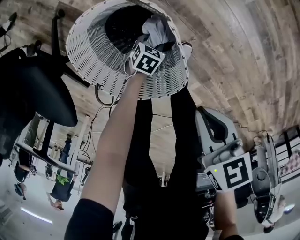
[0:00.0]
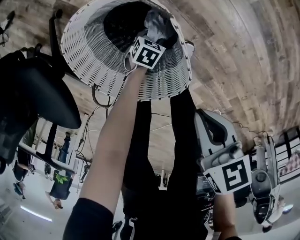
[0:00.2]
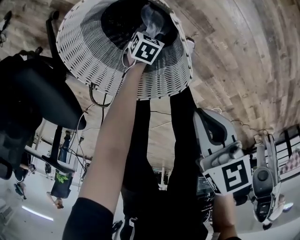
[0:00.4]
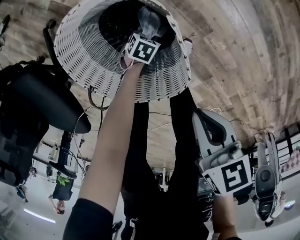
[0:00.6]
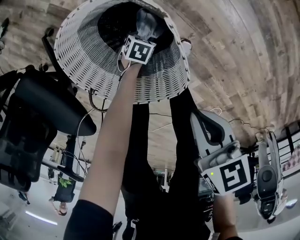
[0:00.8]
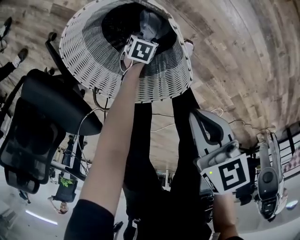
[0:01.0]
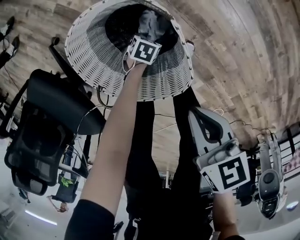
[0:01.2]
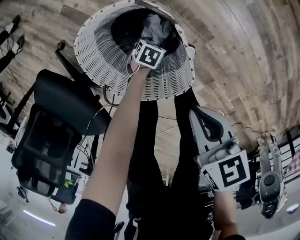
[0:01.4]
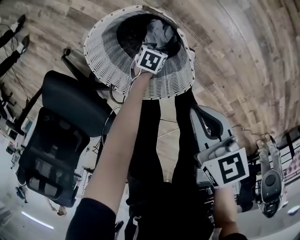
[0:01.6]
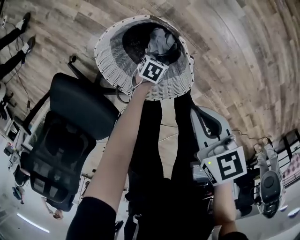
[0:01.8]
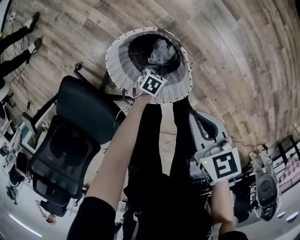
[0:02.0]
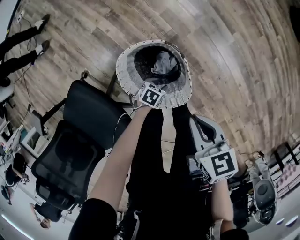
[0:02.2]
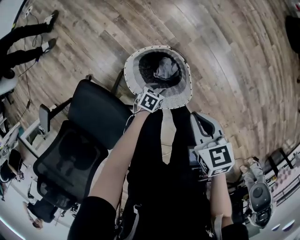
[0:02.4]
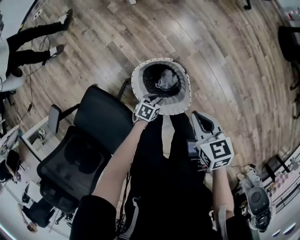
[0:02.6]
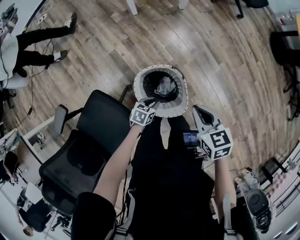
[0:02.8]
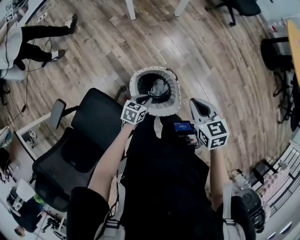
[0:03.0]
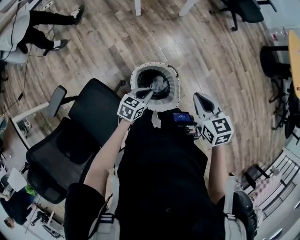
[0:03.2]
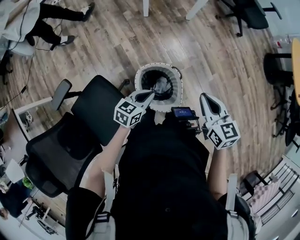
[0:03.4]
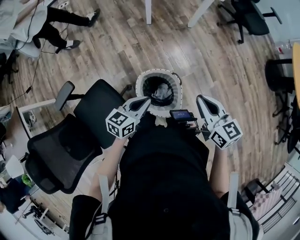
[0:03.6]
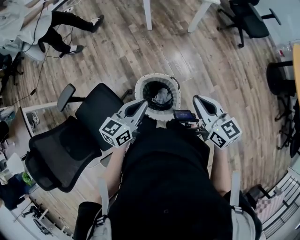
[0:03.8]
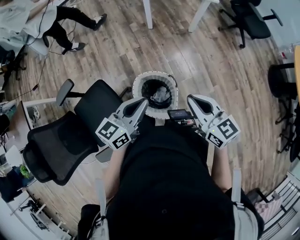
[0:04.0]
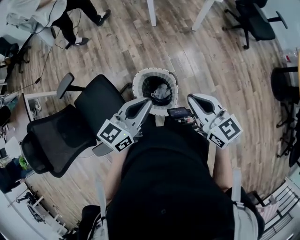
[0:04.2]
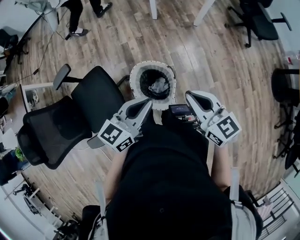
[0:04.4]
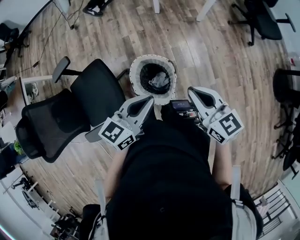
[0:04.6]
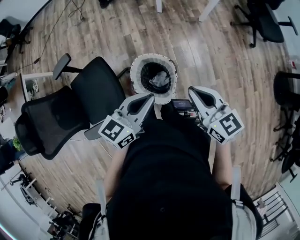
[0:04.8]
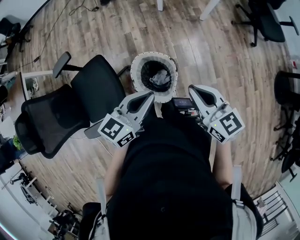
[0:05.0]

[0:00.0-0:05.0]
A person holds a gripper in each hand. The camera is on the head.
0:00.0 to 0:01.6: The right gripper moves some 5 cm. Meanwhile the left gripper moves some 5 cm downward and comes back.
0:01.6 to 0:03.4: The right gripper travels upward by roughly 40 cm, and rotates roughly 30 degrees, while the left gripper heads upward, covering about 60 cm, points its fingers some 40 degrees further upward, and closes up.
0:03.4 to 0:05.0: The left gripper heads upward, covering roughly 20 cm, and changes its angle by approximately 30 degrees, while the right gripper moves roughly 10 cm, and rotates about 30 degrees.

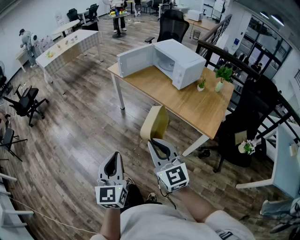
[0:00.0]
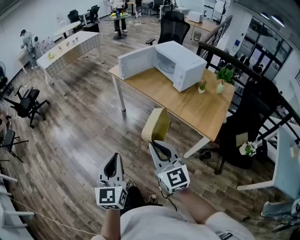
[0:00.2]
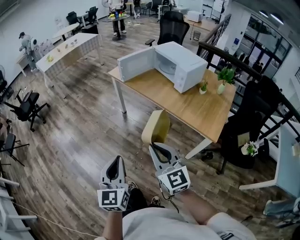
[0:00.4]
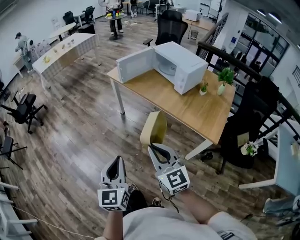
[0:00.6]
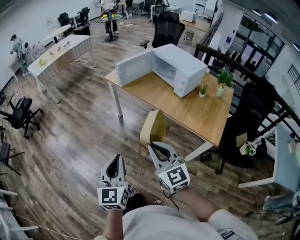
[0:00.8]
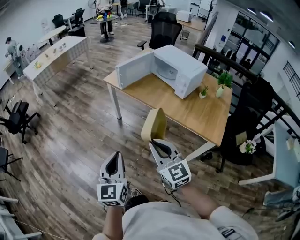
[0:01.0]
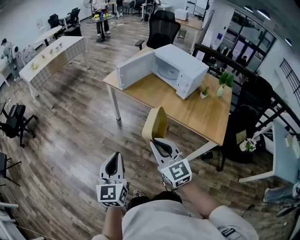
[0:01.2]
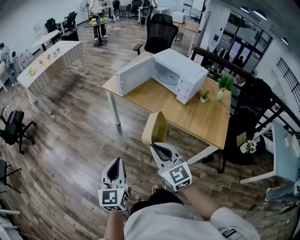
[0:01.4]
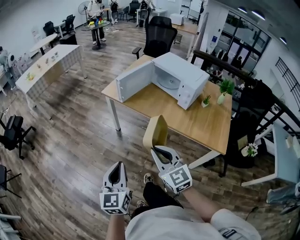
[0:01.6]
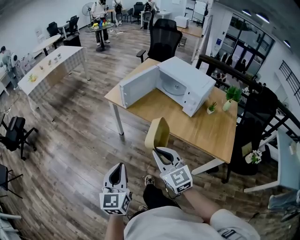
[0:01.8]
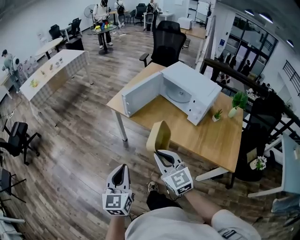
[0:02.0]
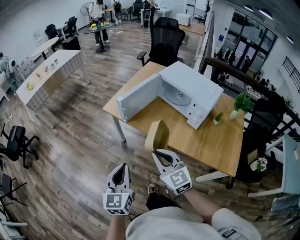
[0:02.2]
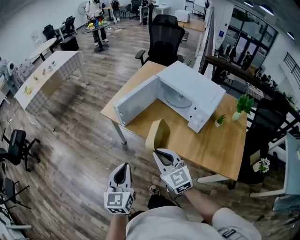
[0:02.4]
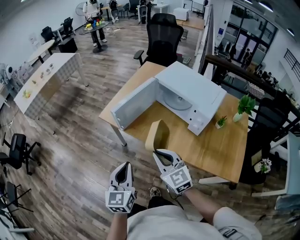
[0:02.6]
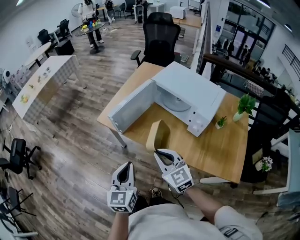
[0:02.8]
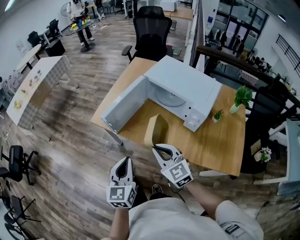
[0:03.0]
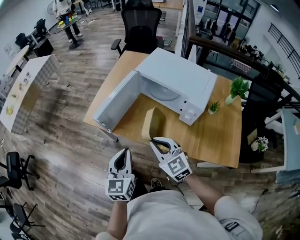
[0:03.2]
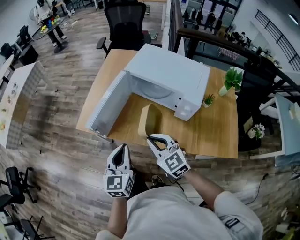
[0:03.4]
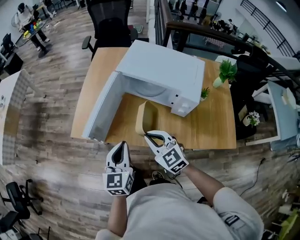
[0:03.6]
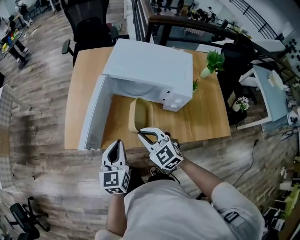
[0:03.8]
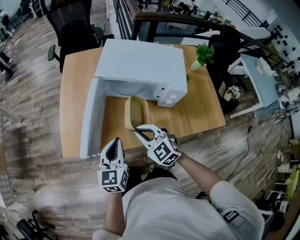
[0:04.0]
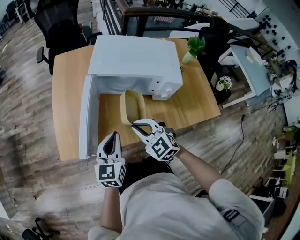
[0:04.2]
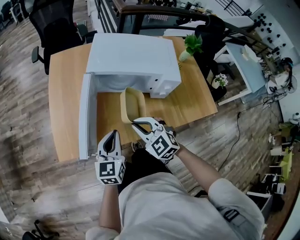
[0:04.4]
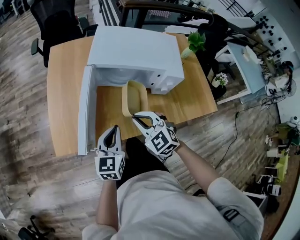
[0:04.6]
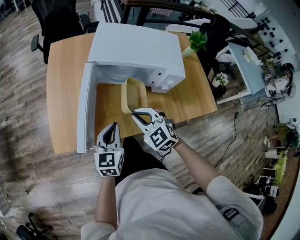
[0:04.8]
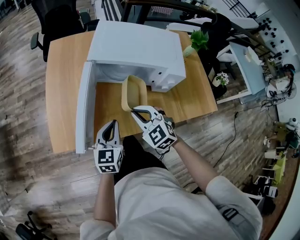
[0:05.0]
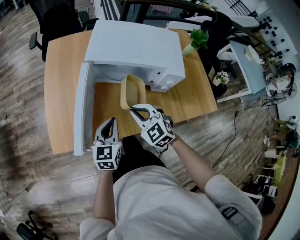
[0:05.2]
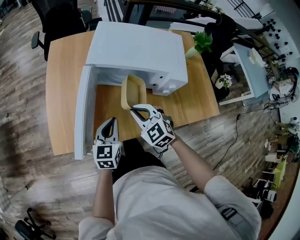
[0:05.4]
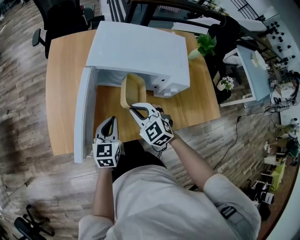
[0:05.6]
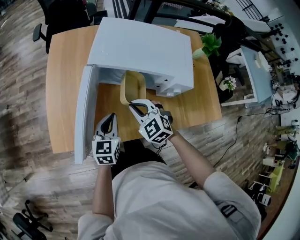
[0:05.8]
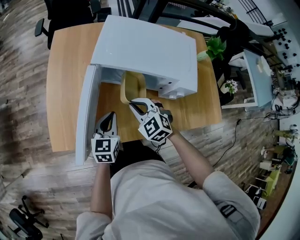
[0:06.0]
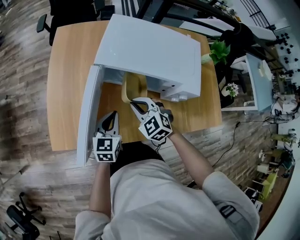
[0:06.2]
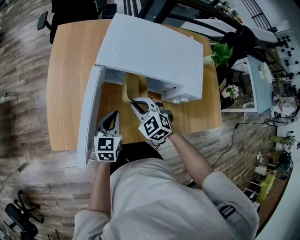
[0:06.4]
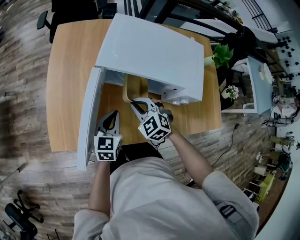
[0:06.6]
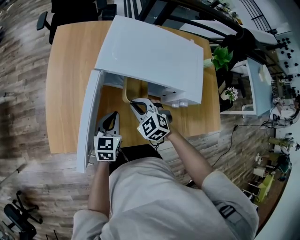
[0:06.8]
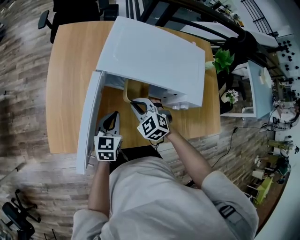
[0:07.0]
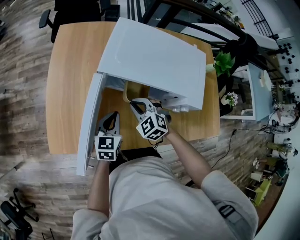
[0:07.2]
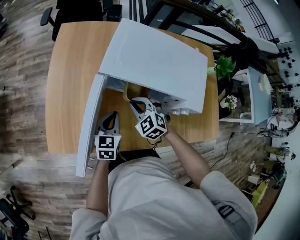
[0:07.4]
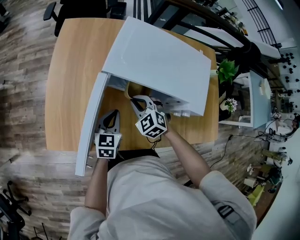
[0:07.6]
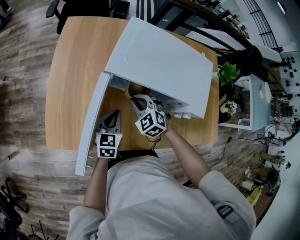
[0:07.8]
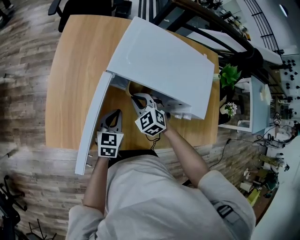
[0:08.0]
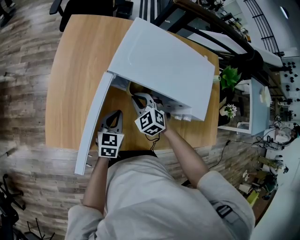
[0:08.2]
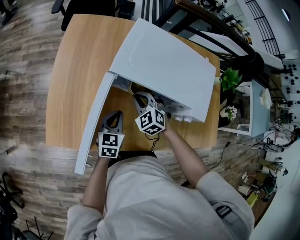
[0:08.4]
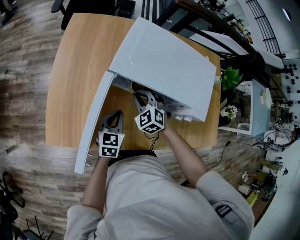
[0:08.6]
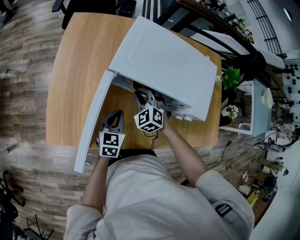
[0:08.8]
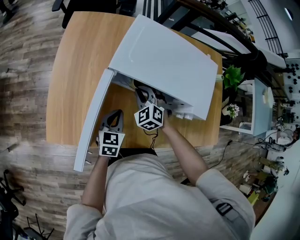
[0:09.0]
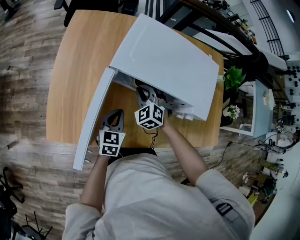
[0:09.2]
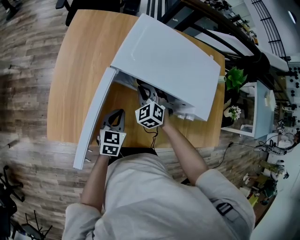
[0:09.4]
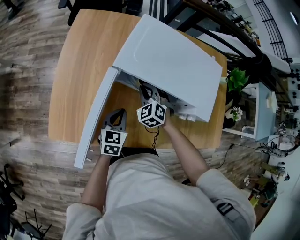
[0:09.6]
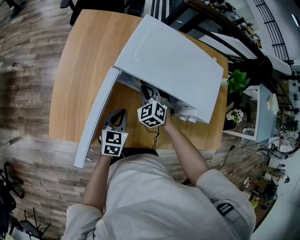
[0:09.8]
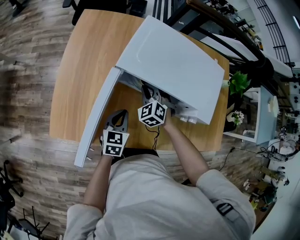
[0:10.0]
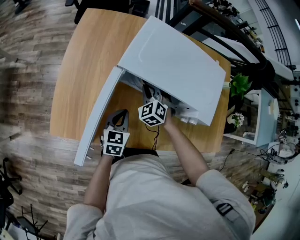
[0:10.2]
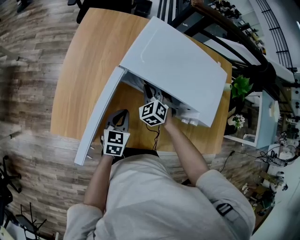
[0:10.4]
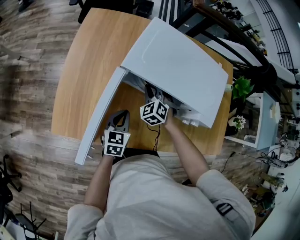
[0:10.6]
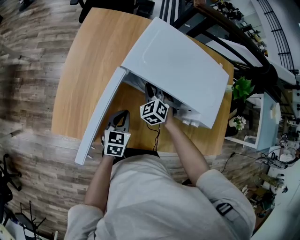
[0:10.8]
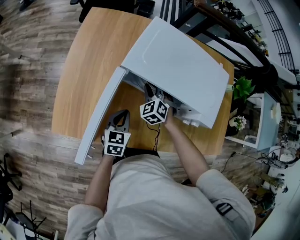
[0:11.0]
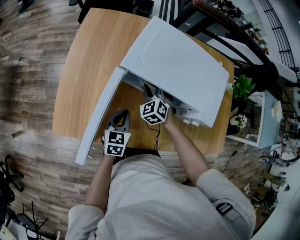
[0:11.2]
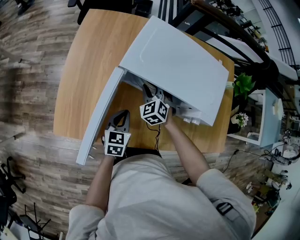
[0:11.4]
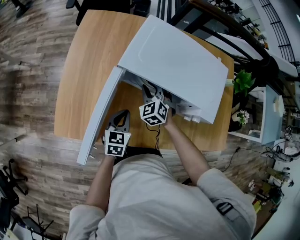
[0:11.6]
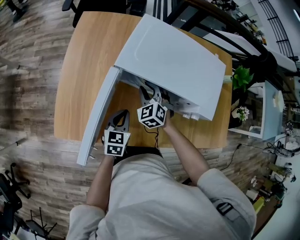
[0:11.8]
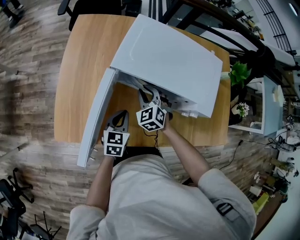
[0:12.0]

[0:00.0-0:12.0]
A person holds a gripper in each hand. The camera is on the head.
0:00.0 to 0:01.6: The two grippers go about 20 cm forward.
0:01.6 to 0:03.0: Both grippers move forward, about 30 cm.
0:03.0 to 0:04.4: The left gripper shifts by about 20 cm, and rotates about 40 degrees; the right gripper shifts by approximately 15 cm, and rotates about 30 degrees.
0:04.4 to 0:06.0: Both grippers travel together forward and downward, roughly 10 cm.
0:06.0 to 0:07.6: The right gripper heads forward and downward, covering some 10 cm. Meanwhile the left gripper shifts roughly 5 cm forward.
0:07.6 to 0:09.0: The grippers move only a little.
0:09.0 to 0:12.0: The grippers move only a little.

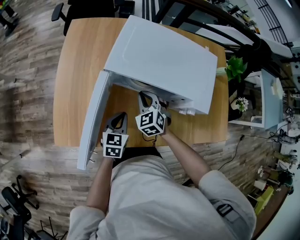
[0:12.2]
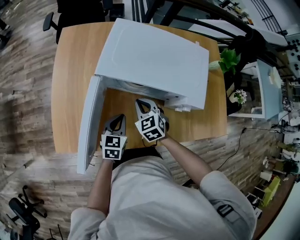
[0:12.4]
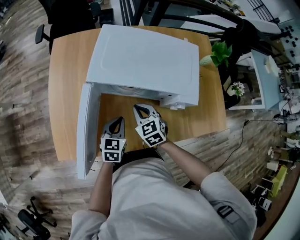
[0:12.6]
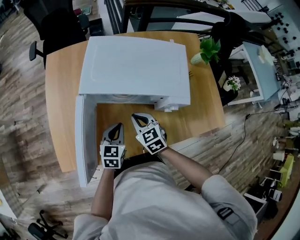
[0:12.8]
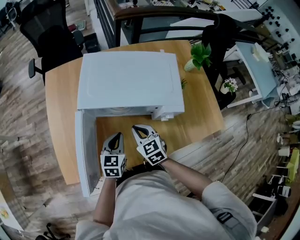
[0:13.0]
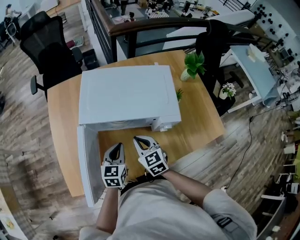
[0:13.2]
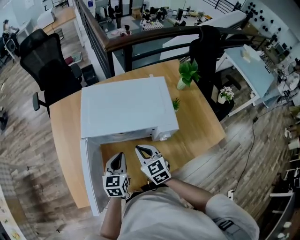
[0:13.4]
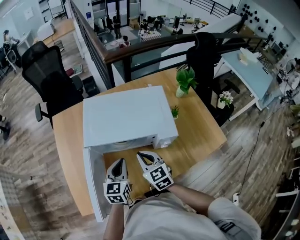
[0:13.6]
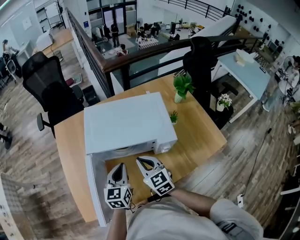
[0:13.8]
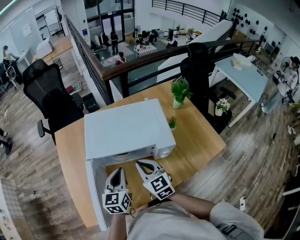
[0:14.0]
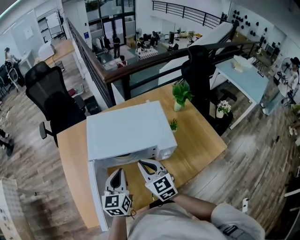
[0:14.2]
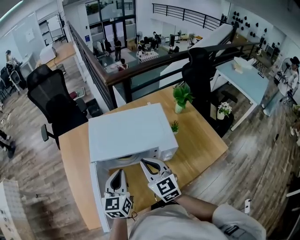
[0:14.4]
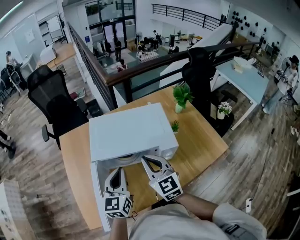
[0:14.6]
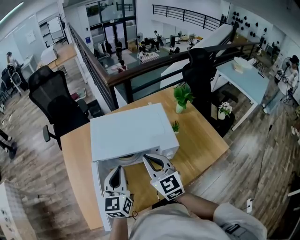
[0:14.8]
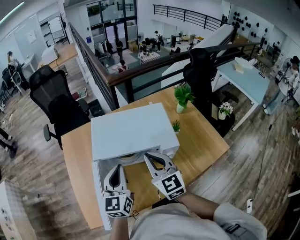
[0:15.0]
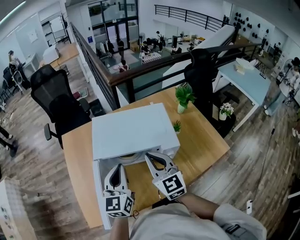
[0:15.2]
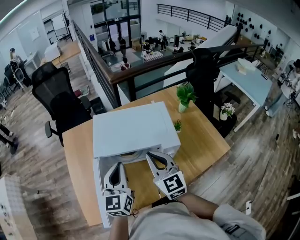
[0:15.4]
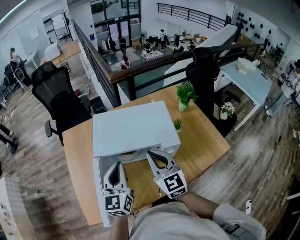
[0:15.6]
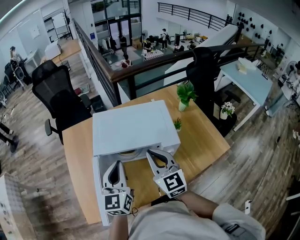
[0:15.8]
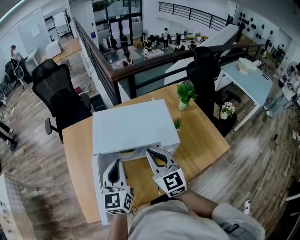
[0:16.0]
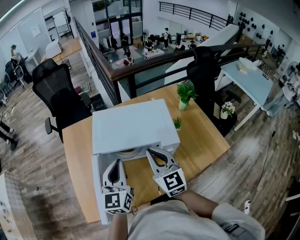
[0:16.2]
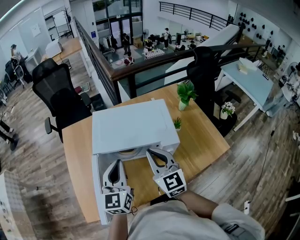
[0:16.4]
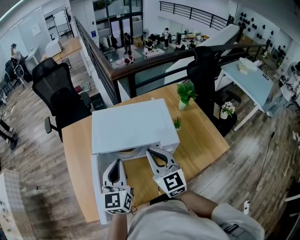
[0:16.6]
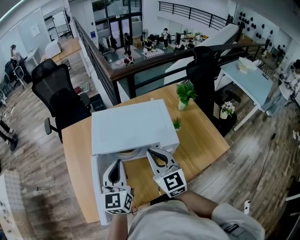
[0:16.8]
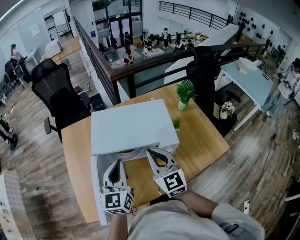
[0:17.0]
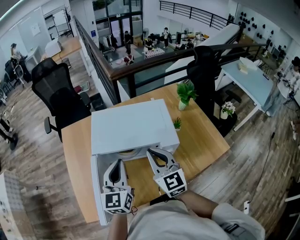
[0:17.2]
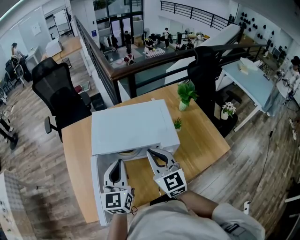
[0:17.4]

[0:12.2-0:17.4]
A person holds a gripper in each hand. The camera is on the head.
0:12.2 to 0:14.0: The right gripper goes roughly 15 cm upward and to the right, and swivels roughly 40 degrees. The left gripper is displaced upward by roughly 15 cm.
0:14.0 to 0:15.6: The grippers both shift upward by about 10 cm.
0:15.6 to 0:17.4: The grippers stay close to where they were, moving slightly.

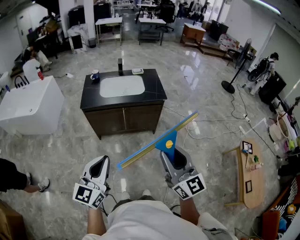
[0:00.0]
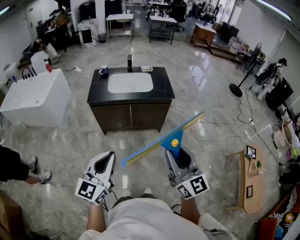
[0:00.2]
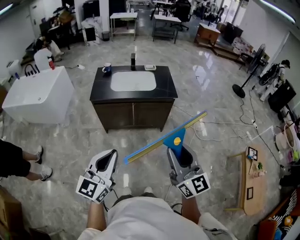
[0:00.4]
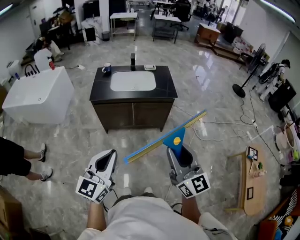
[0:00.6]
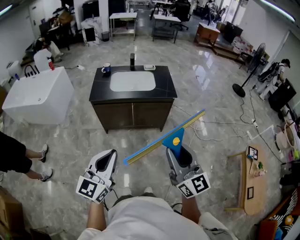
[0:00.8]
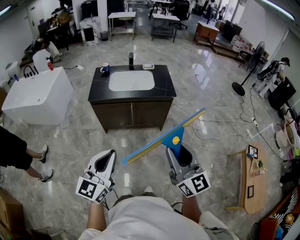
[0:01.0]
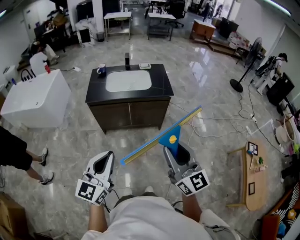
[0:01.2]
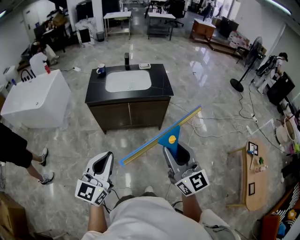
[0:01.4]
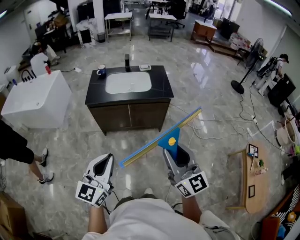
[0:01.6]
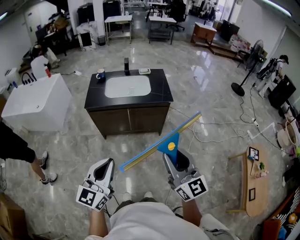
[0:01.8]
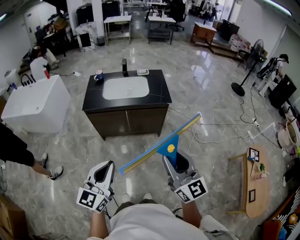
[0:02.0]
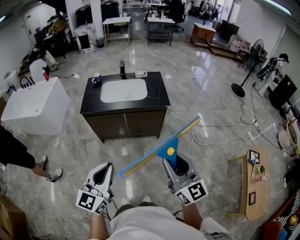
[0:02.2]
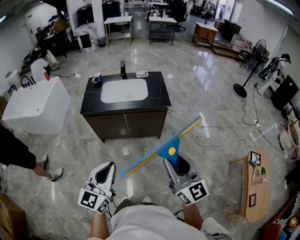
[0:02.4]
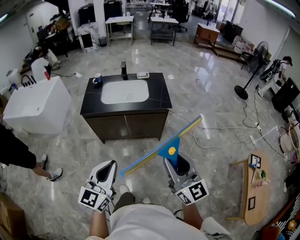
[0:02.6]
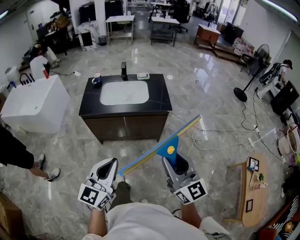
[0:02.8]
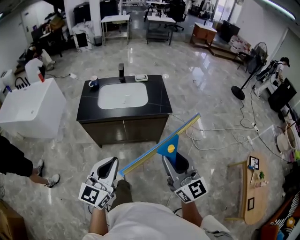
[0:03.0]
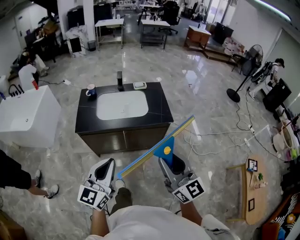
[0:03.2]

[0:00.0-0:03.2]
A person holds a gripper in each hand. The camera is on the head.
0:00.0 to 0:01.6: The grippers stay close to where they were, moving slightly.
0:01.6 to 0:03.2: The grippers both shift forward by roughly 20 cm.
